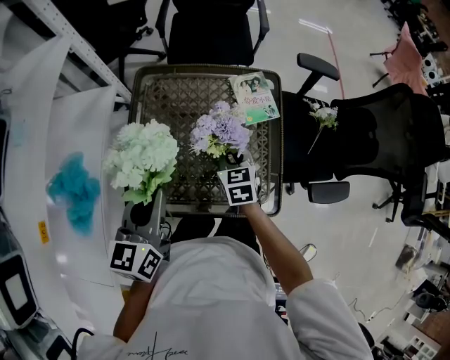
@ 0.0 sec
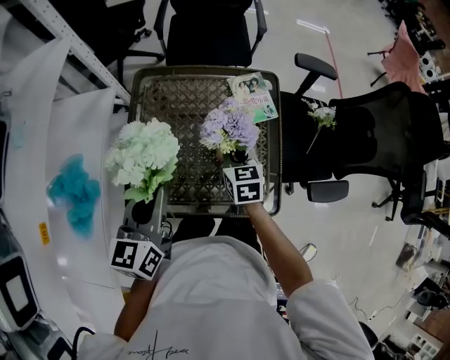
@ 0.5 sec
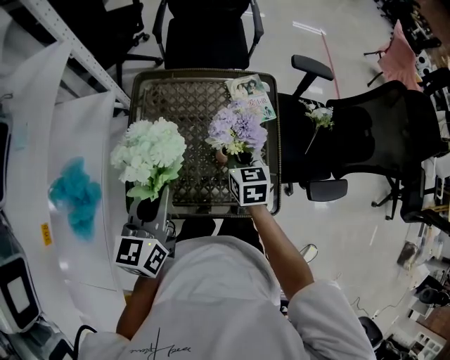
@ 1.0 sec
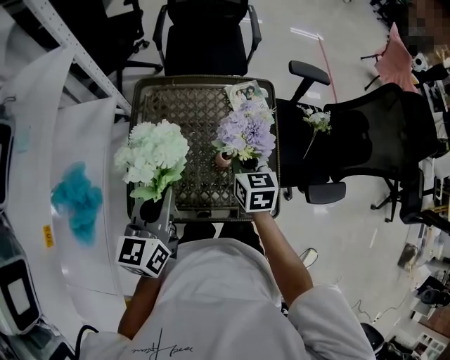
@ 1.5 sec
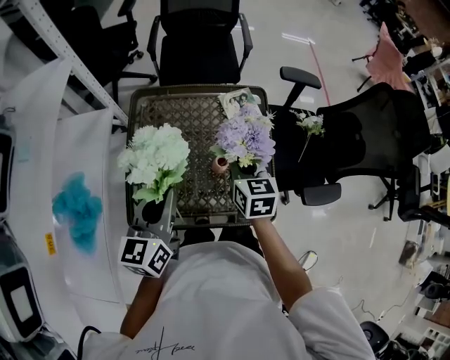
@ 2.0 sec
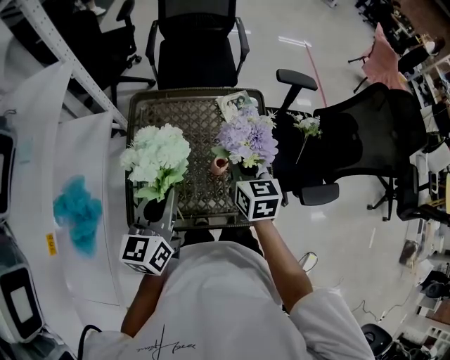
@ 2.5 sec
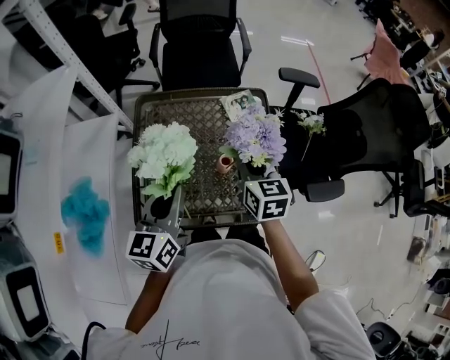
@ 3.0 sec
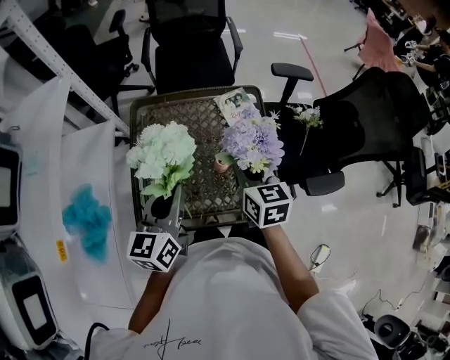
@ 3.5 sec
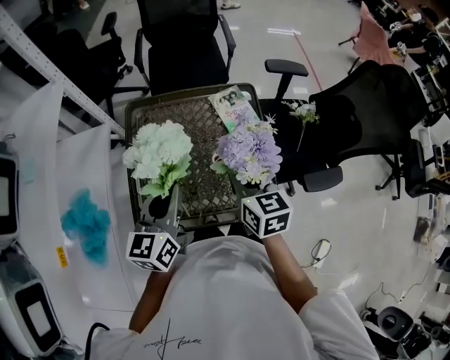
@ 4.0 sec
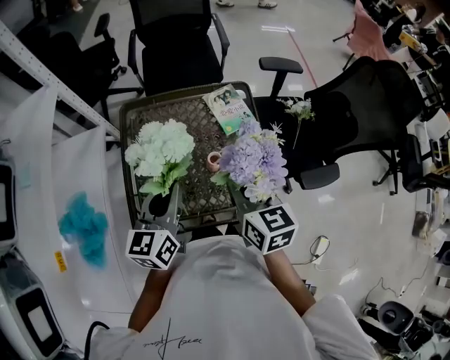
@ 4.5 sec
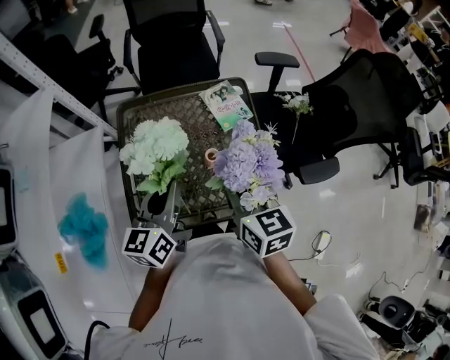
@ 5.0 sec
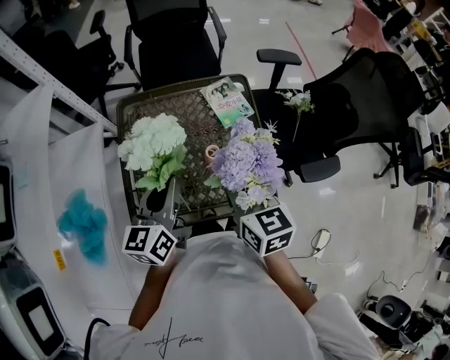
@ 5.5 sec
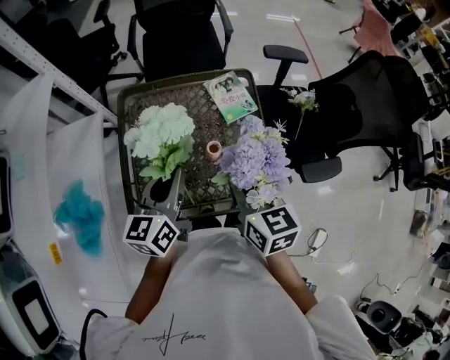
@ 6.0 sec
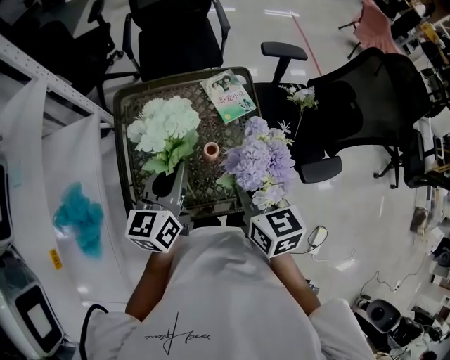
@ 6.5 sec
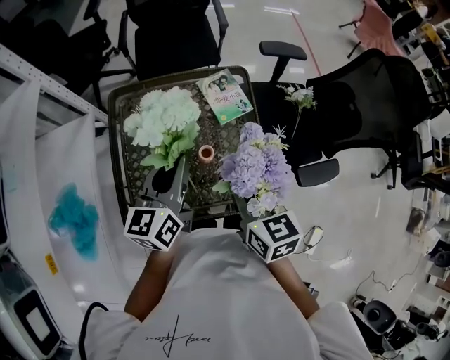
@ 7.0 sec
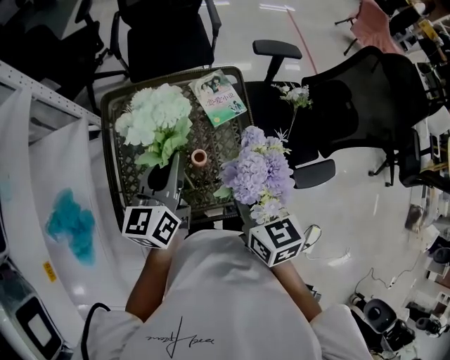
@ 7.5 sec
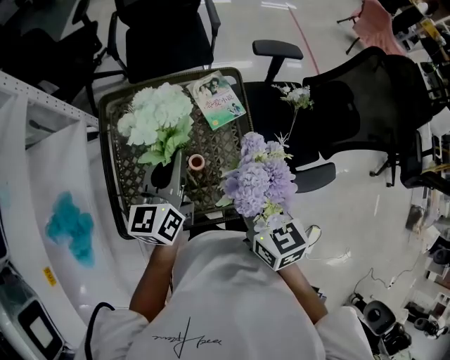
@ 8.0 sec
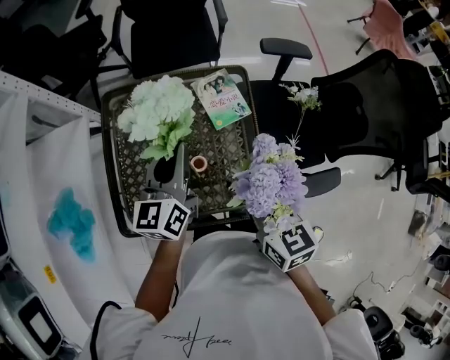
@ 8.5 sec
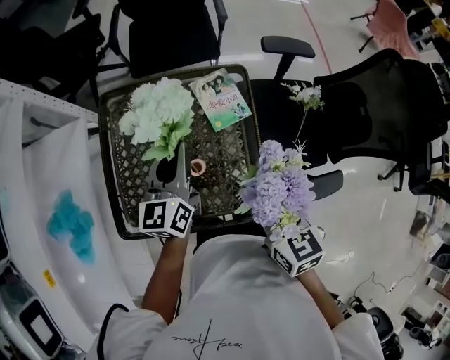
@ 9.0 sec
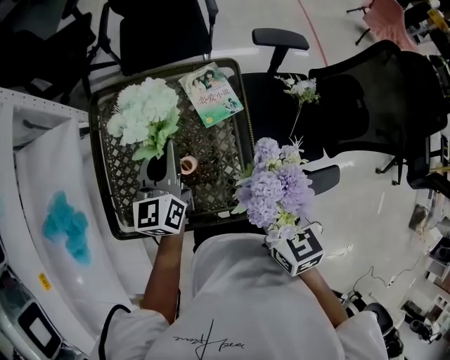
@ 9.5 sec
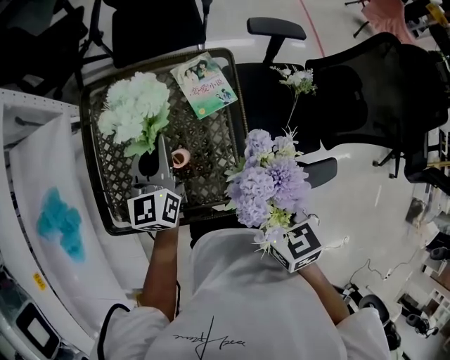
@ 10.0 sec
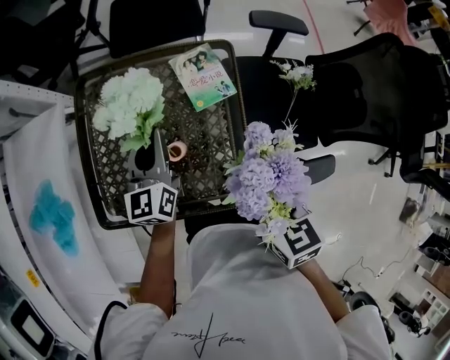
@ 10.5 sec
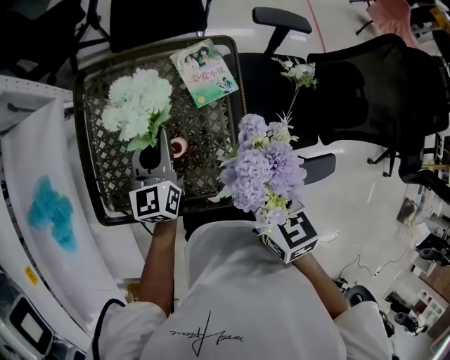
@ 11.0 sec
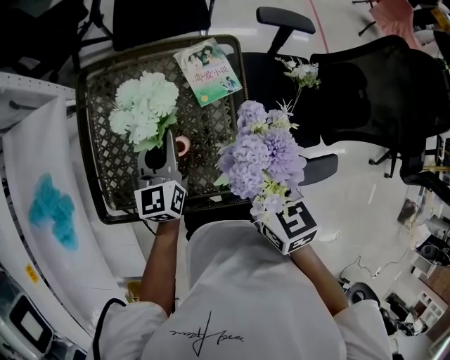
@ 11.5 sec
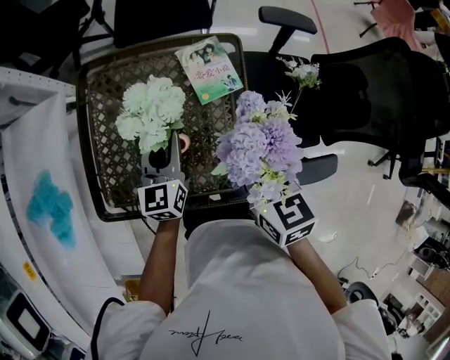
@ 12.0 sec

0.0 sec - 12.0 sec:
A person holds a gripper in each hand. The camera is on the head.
0.0 sec - 2.0 sec: The right gripper is displaced upward by about 10 cm.
2.0 sec - 4.0 sec: The right gripper travels upward and backward by roughly 10 cm.
4.0 sec - 6.0 sec: The grippers make only small movements.
6.0 sec - 8.0 sec: The left gripper travels forward and to the right by about 10 cm. Meanwhile the right gripper shifts about 5 cm to the right.
8.0 sec - 10.0 sec: The left gripper shifts some 5 cm downward; the right gripper is displaced to the right by roughly 10 cm.
10.0 sec - 12.0 sec: The right gripper ends up about 5 cm from where it was; the left gripper heads downward, covering about 5 cm.

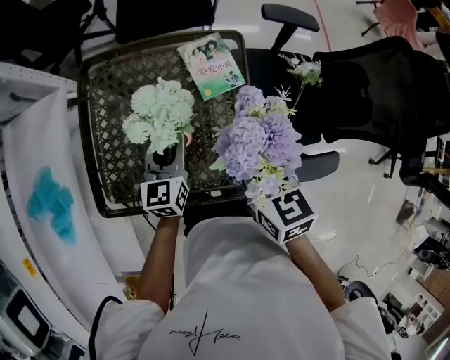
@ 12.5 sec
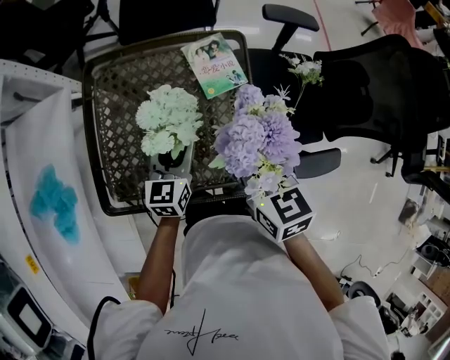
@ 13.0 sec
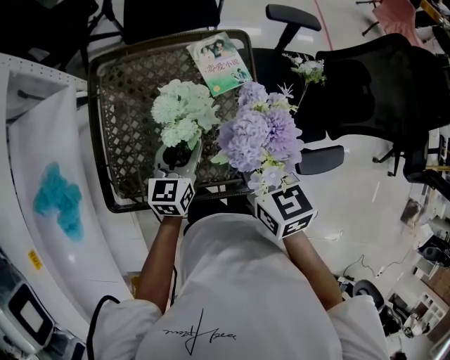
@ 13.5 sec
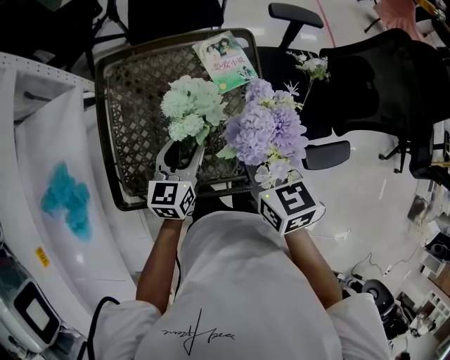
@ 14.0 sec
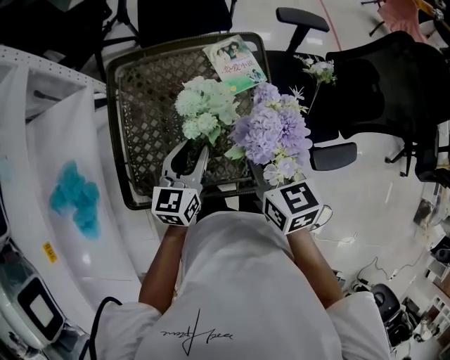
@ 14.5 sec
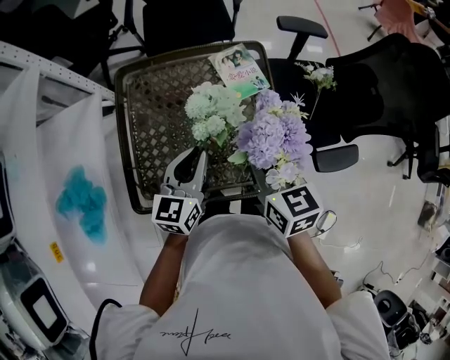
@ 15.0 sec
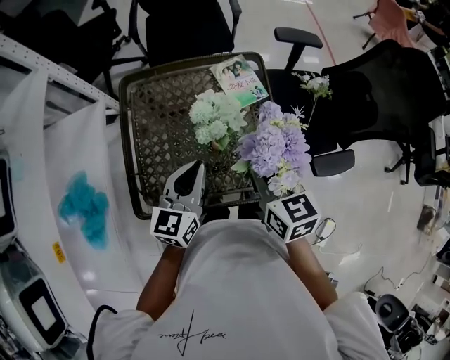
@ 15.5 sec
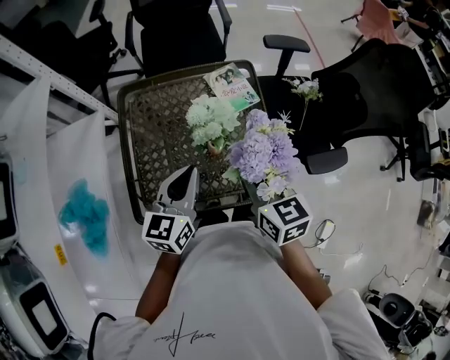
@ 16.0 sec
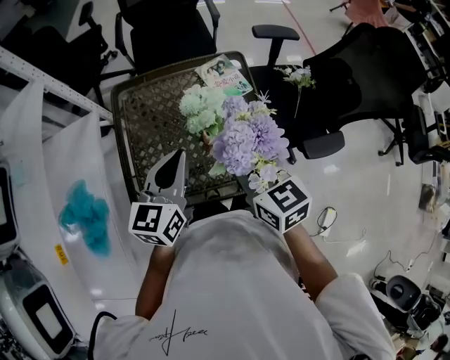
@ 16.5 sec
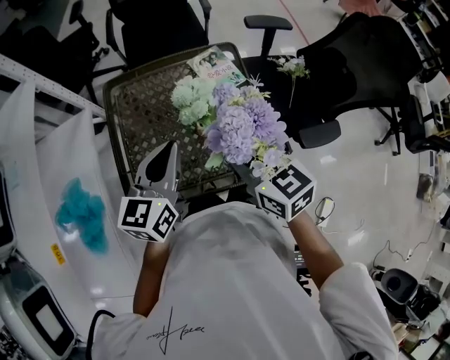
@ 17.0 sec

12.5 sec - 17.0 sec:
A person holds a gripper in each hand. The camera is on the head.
12.5 sec - 14.5 sec: The left gripper moves about 5 cm.
14.5 sec - 17.0 sec: The left gripper moves upward, roughly 15 cm, and closes up, while the right gripper travels upward, backward and to the left by some 10 cm.

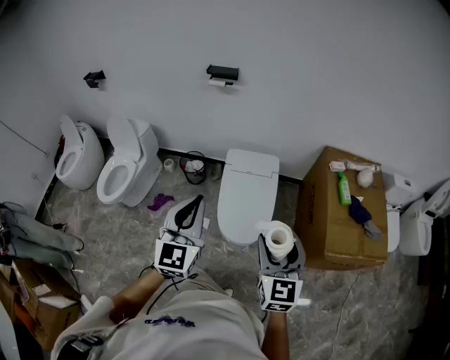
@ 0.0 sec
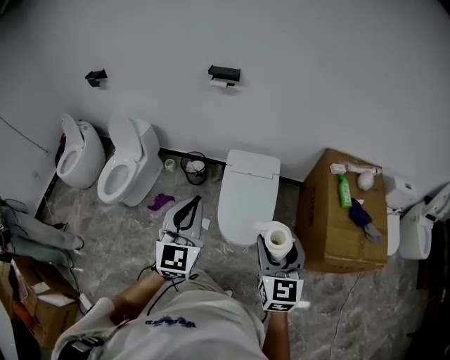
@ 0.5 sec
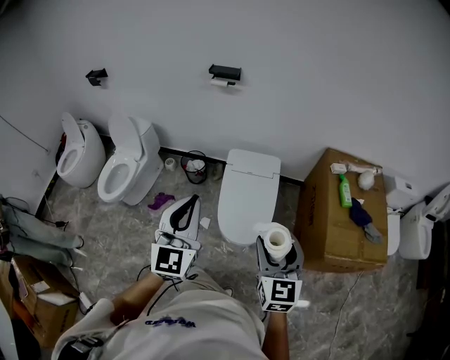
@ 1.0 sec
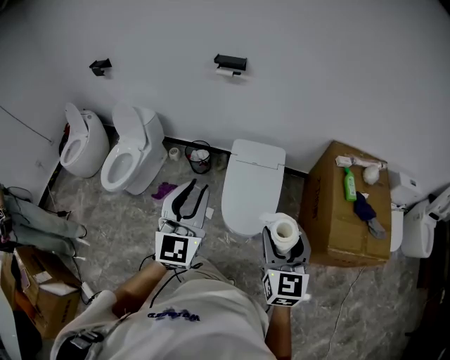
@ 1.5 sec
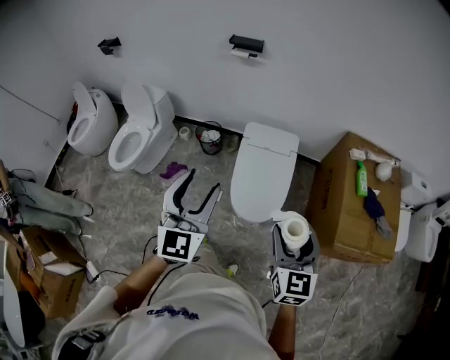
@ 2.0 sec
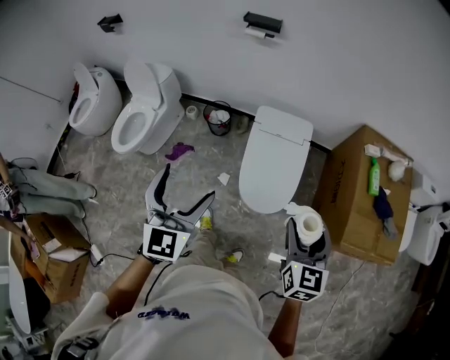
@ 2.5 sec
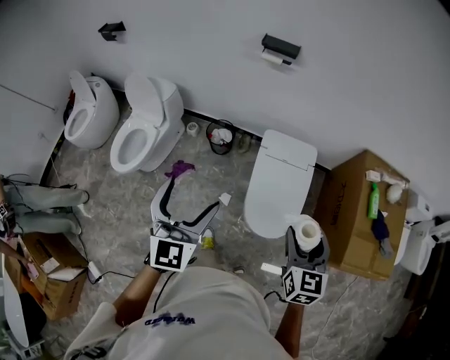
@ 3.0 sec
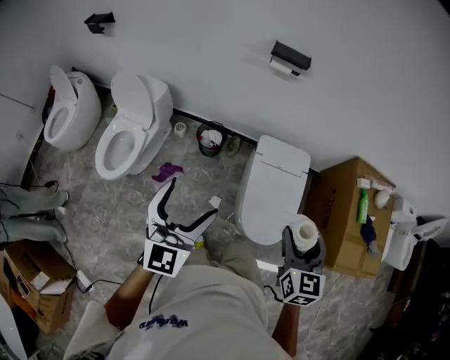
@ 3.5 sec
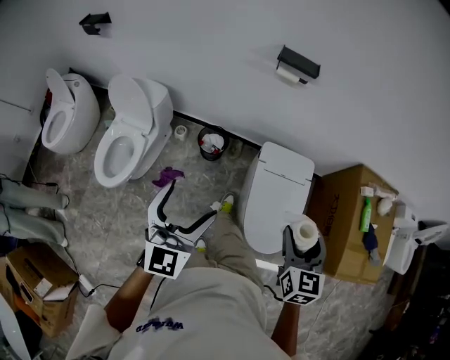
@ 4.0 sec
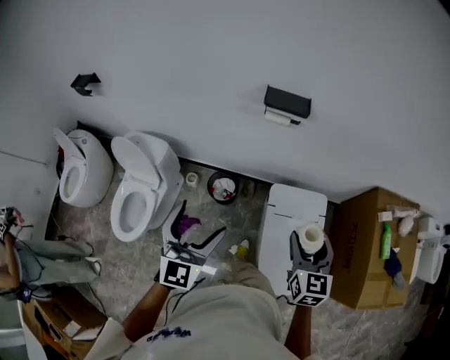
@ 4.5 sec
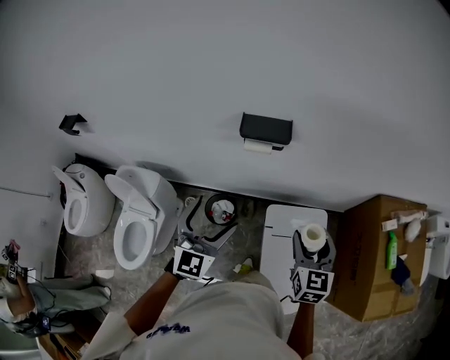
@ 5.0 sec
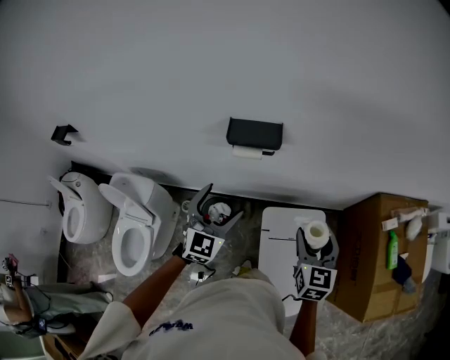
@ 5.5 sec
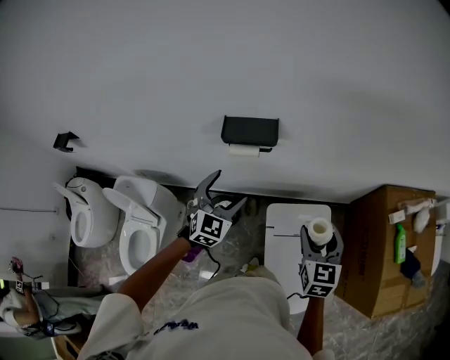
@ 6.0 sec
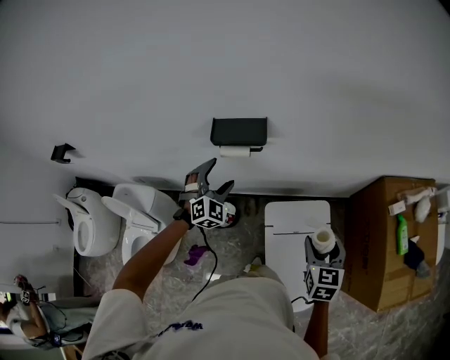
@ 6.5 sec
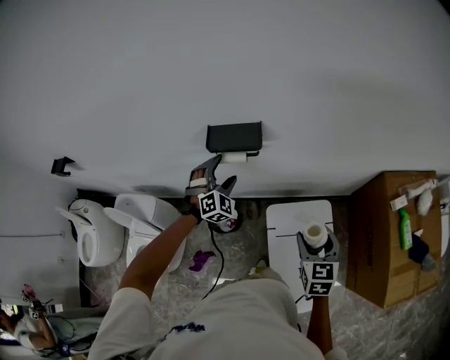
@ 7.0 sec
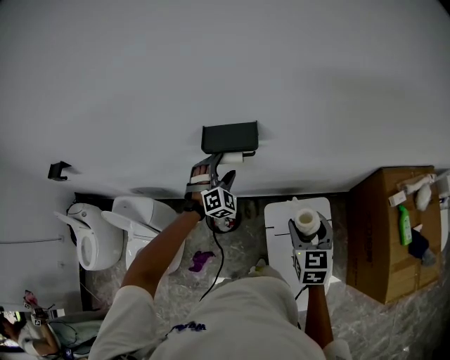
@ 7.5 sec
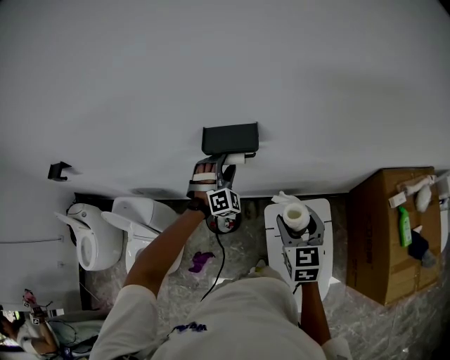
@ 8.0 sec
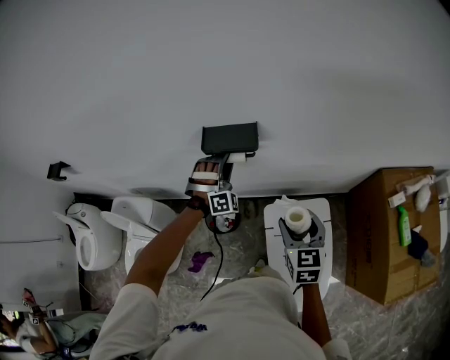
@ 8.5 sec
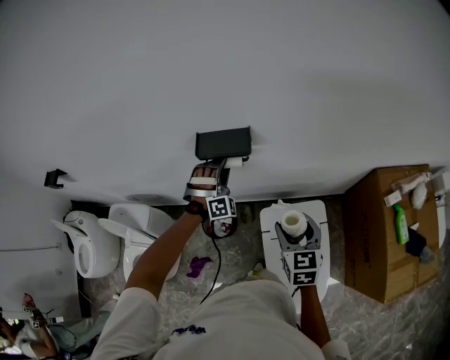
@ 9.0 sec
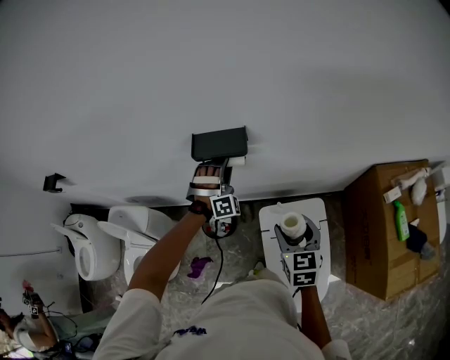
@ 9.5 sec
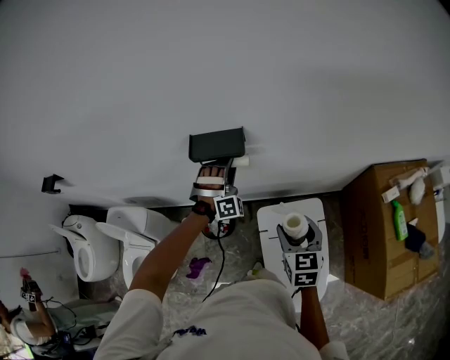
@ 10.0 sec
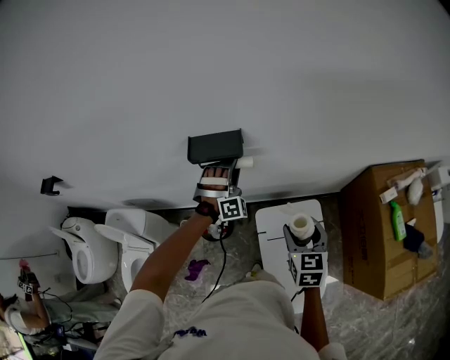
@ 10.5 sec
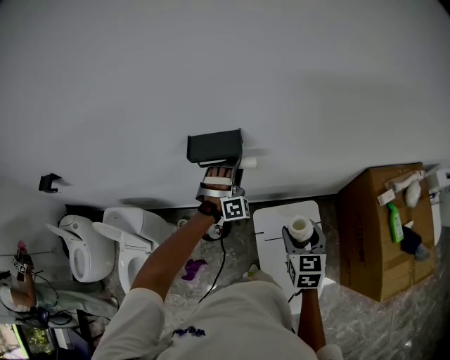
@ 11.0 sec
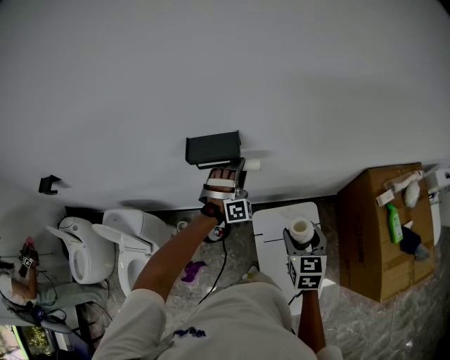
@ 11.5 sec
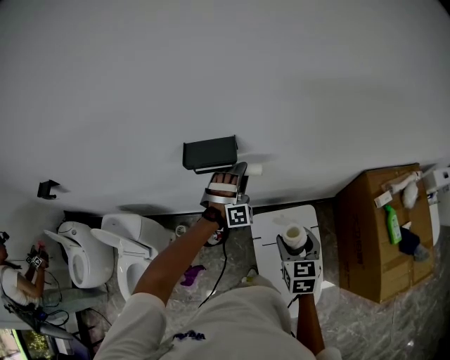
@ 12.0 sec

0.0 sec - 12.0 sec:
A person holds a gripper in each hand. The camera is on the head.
0.0 sec - 2.0 sec: The left gripper opens up.
2.0 sec - 4.0 sec: The left gripper is displaced to the left and forward by some 35 cm, and opens its fingers, while the right gripper shifts roughly 35 cm forward and to the left.
4.0 sec - 6.0 sec: The grippers both shift forward by roughly 40 cm. The left gripper turns by approximately 20 degrees.
6.0 sec - 8.0 sec: The left gripper is displaced forward by roughly 15 cm, and rotates around the line of its fingers by some 40 degrees, clockwise from behind, while the right gripper shifts by roughly 5 cm.
8.0 sec - 10.0 sec: The grippers stay close to where they were, moving slightly.
10.0 sec - 12.0 sec: The left gripper heads to the right, covering some 5 cm.
